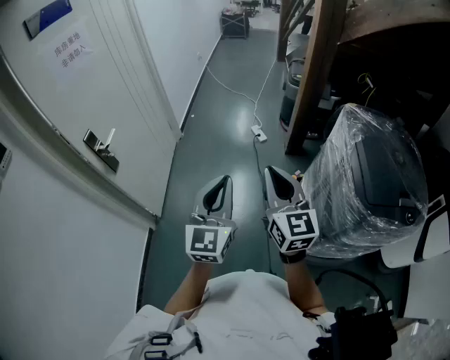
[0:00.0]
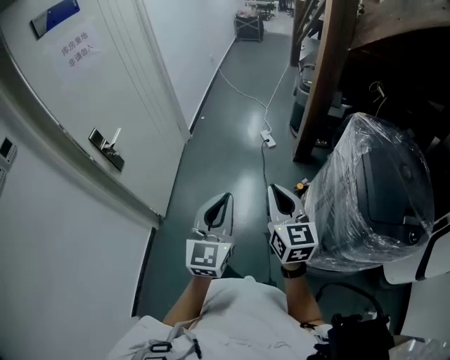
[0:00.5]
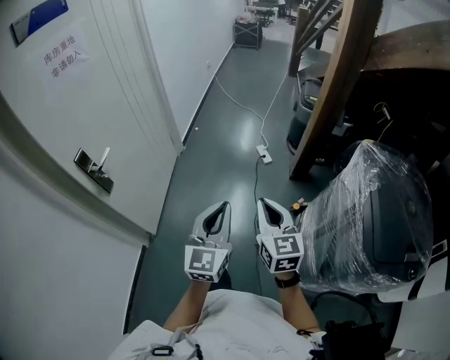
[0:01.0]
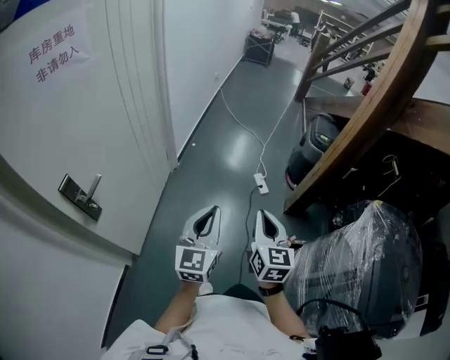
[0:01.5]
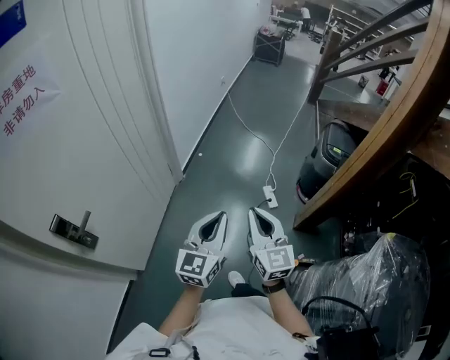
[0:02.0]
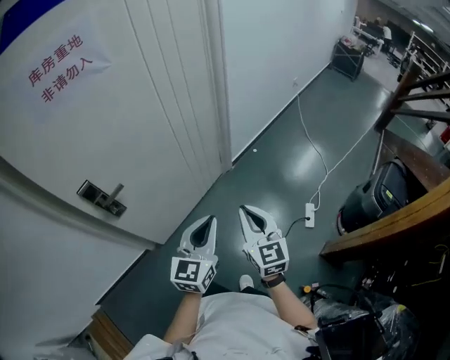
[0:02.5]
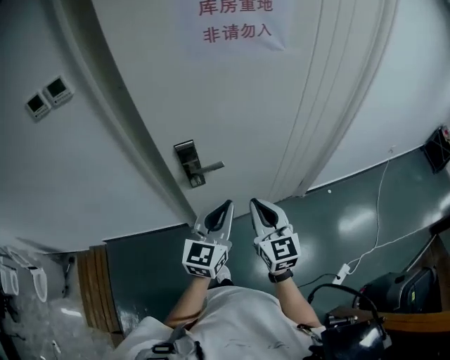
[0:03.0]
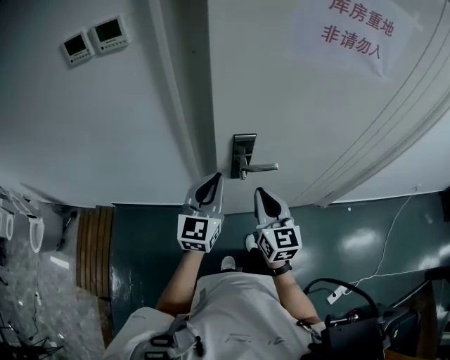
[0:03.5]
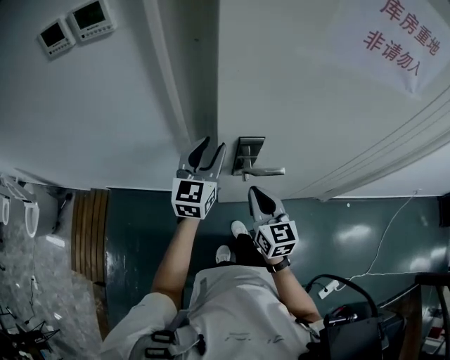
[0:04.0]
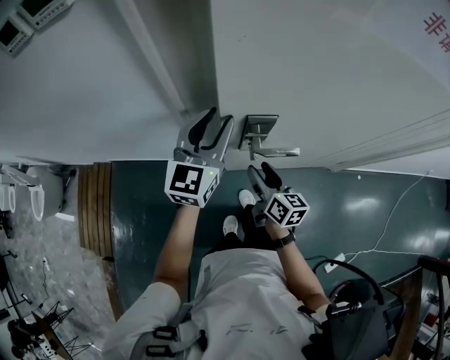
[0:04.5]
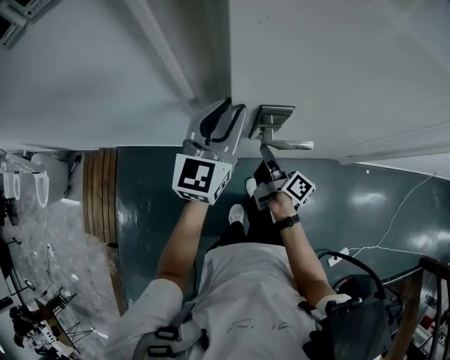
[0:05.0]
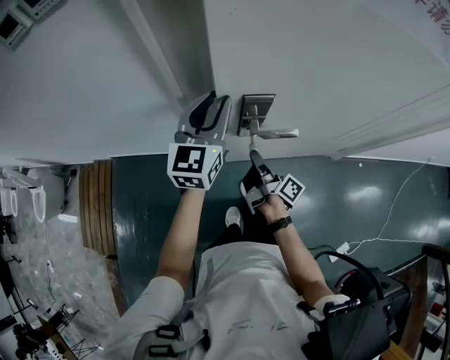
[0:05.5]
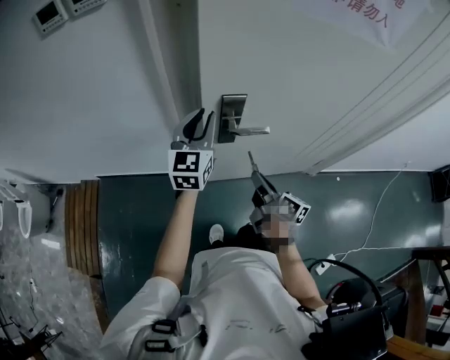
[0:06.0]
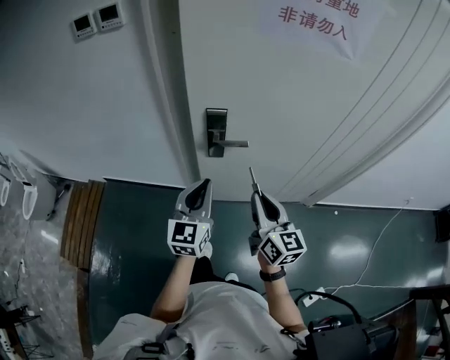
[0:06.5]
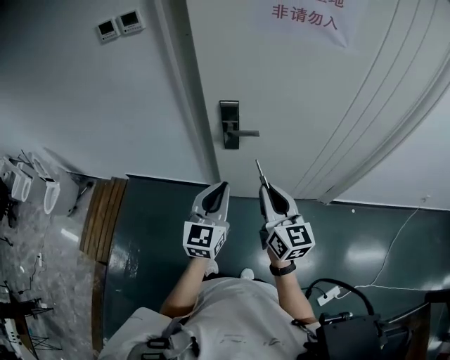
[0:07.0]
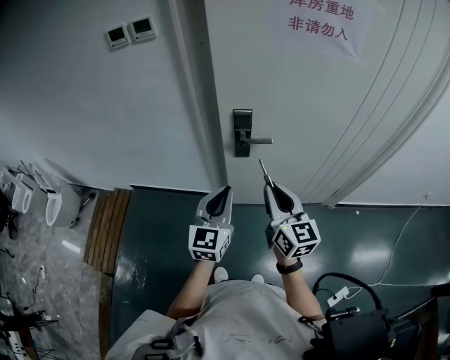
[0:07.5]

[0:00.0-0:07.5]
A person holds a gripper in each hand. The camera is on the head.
0:00.0 to 0:02.0: The pair of grippers is taken forward, some 50 cm.
0:02.0 to 0:04.0: The pair of grippers is taken approximately 60 cm. The left gripper swivels about 80 degrees, and opens its fingers. Meanwhile the right gripper changes its angle by approximately 70 degrees.
0:04.0 to 0:05.5: The right gripper travels downward by about 15 cm, rolls clockwise, seen from behind, by some 80 degrees, and opens, then closes once more.
0:05.5 to 0:07.5: The right gripper heads upward and backward, covering approximately 35 cm, and rolls counterclockwise, seen from behind, by about 80 degrees, while the left gripper goes roughly 30 cm backward, and closes up.

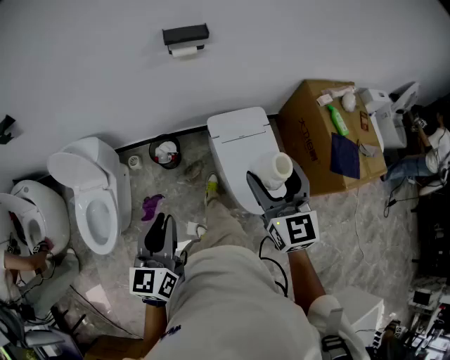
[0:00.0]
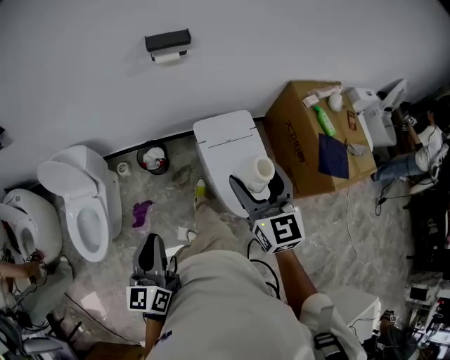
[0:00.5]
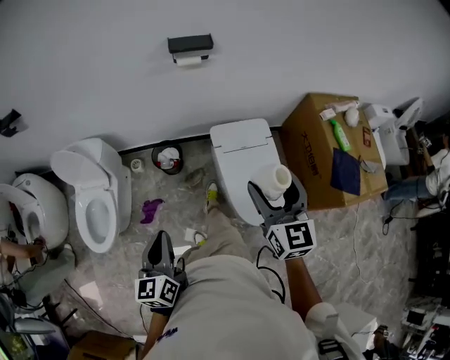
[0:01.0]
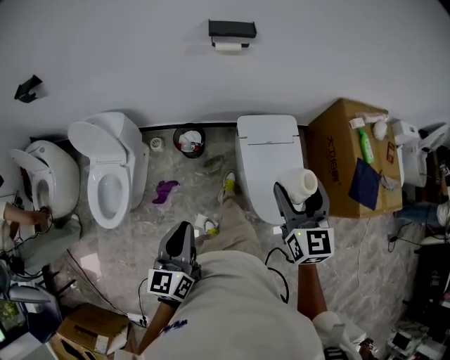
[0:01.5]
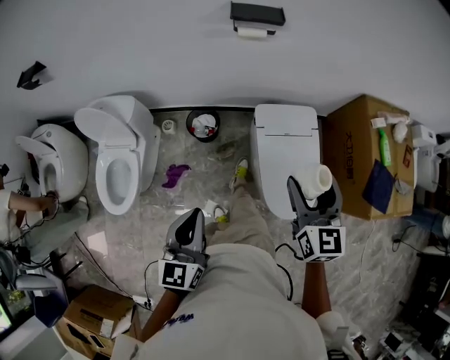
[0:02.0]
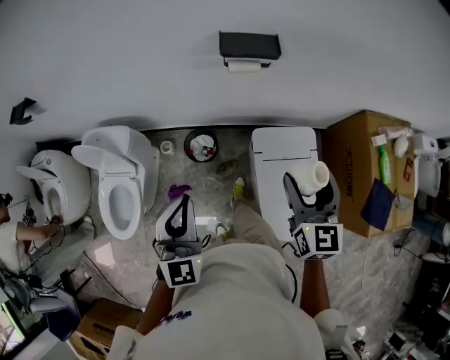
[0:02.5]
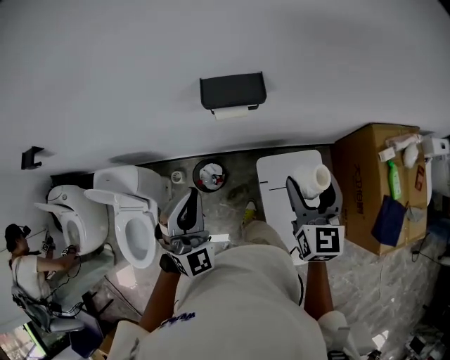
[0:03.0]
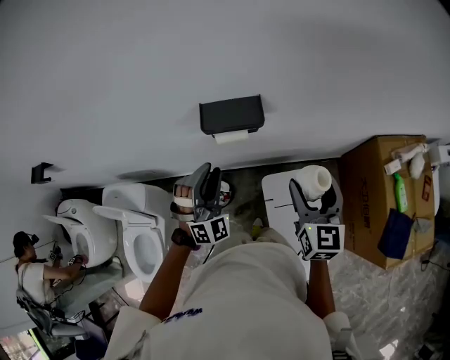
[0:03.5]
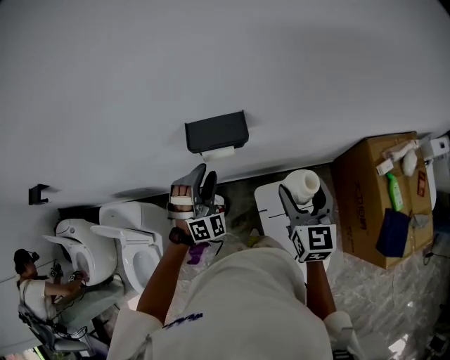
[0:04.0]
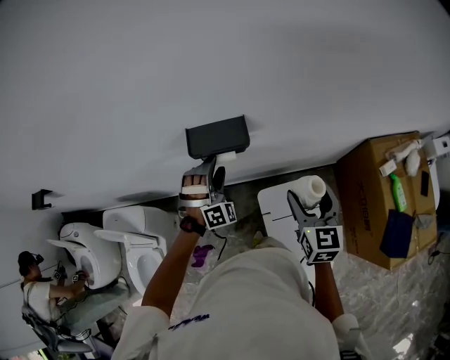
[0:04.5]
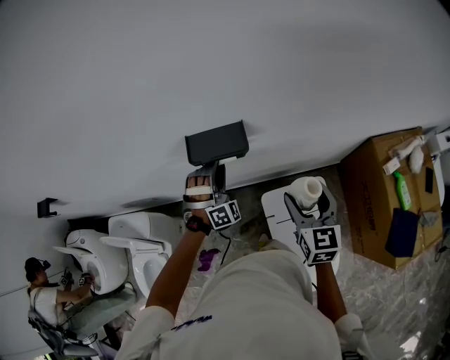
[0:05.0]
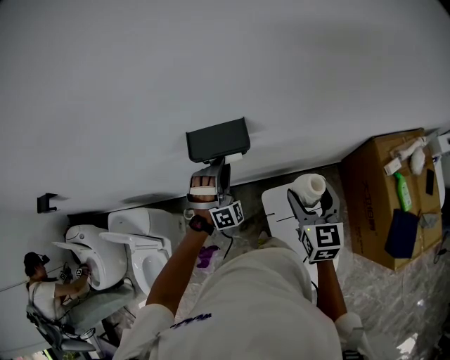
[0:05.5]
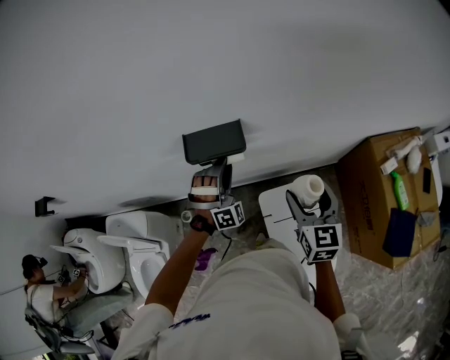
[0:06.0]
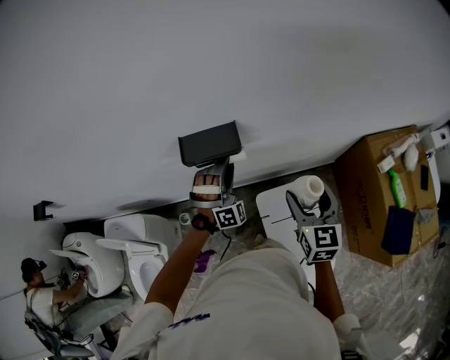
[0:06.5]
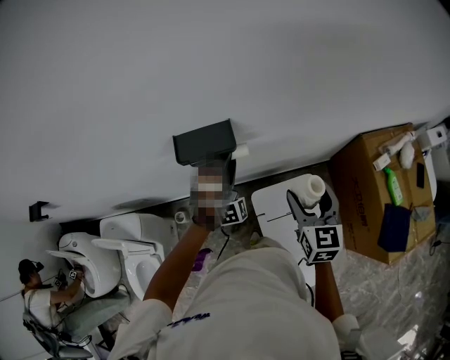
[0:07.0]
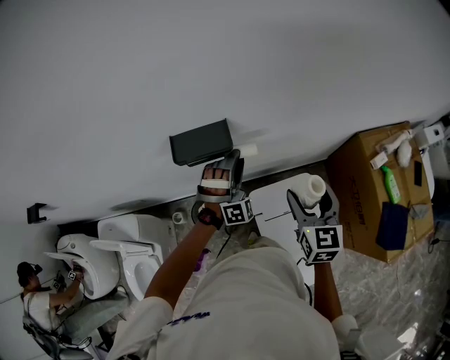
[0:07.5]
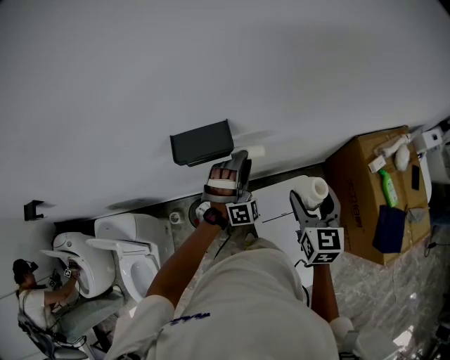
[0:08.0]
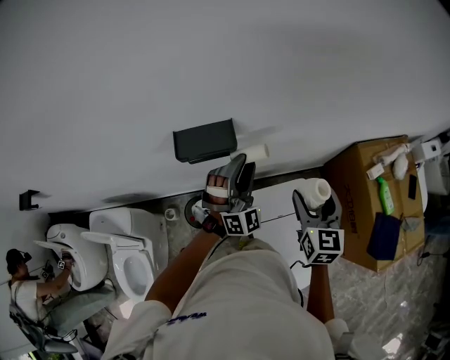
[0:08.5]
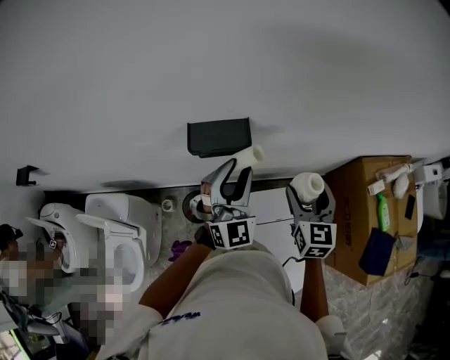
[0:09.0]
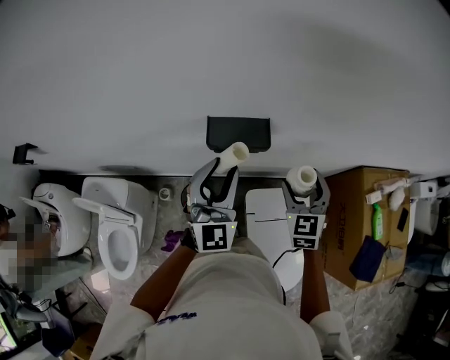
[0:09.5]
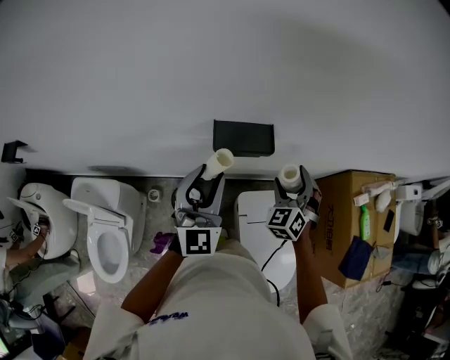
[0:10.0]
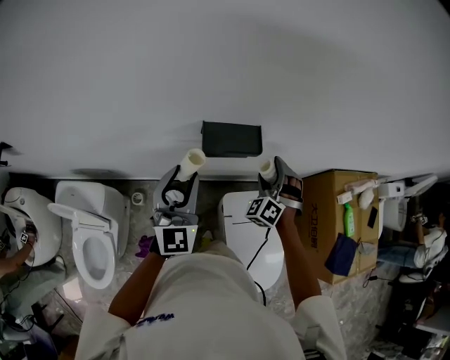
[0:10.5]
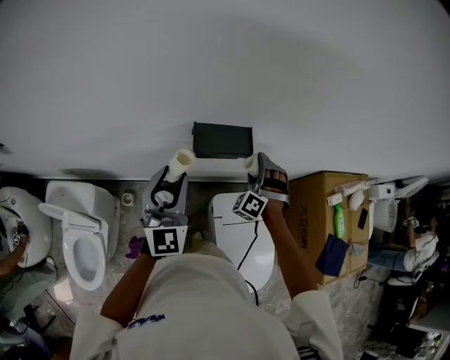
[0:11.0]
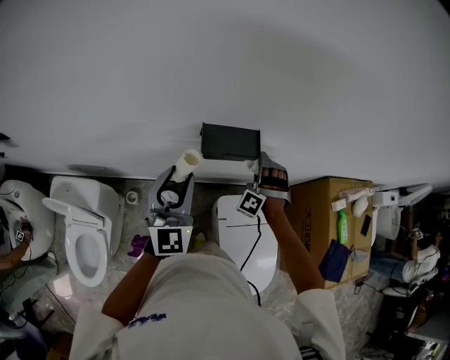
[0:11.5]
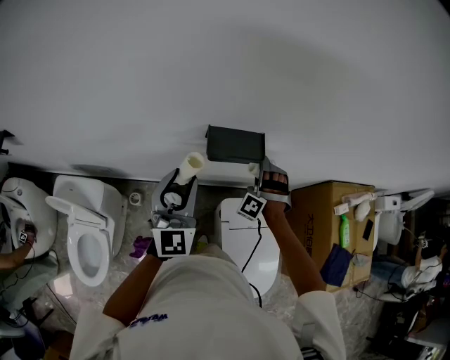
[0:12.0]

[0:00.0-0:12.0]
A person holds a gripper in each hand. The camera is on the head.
0:00.0 to 0:02.0: The right gripper is displaced forward and downward by some 10 cm.
0:02.0 to 0:04.0: The right gripper heads forward, covering approximately 35 cm. Meanwhile the left gripper shifts approximately 50 cm forward, rolls clockwise, seen from behind, by about 80 degrees, and opens up.
0:04.0 to 0:06.0: The left gripper goes approximately 5 cm to the right.
0:06.0 to 0:08.0: The left gripper shifts roughly 10 cm to the right.
0:08.0 to 0:10.0: The right gripper heads to the left and forward, covering about 15 cm, and rotates around the line of its fingers by some 50 degrees, counterclockwise from behind. The left gripper shifts approximately 25 cm to the left, upward and backward, and twists roughly 60 degrees counterclockwise, seen from behind.
0:10.0 to 0:12.0: The right gripper shifts roughly 10 cm downward and to the left, and twists roughly 40 degrees counterclockwise, seen from behind; the left gripper shifts by approximately 5 cm.

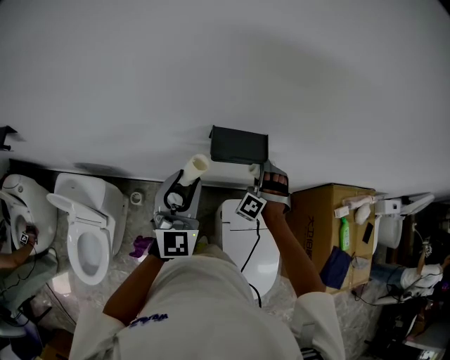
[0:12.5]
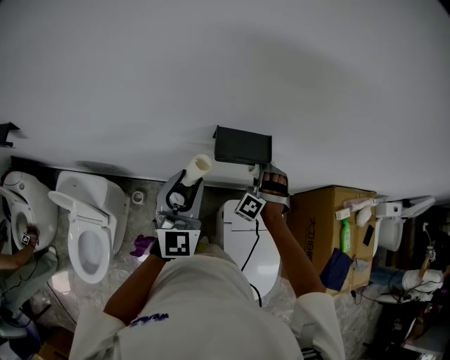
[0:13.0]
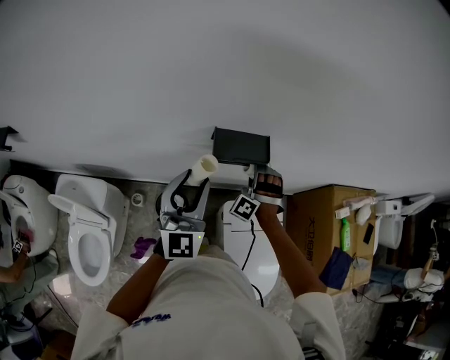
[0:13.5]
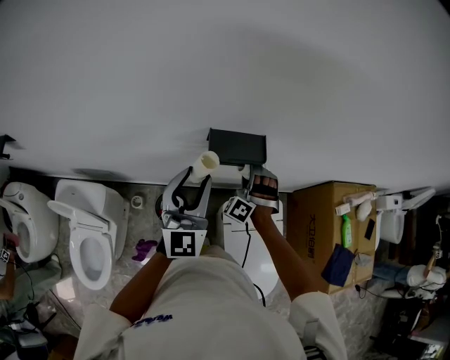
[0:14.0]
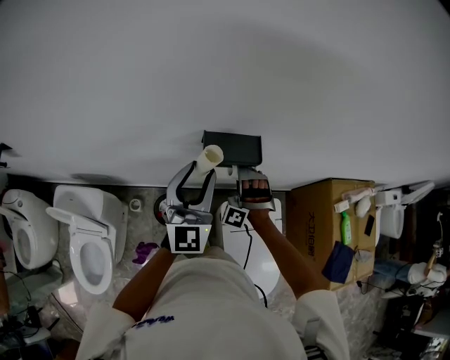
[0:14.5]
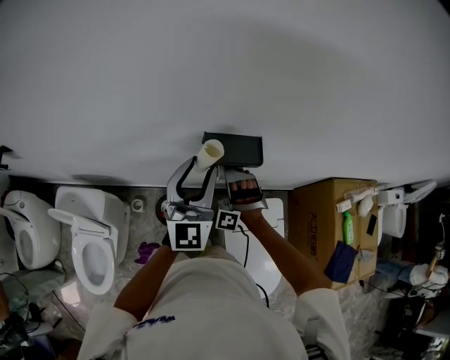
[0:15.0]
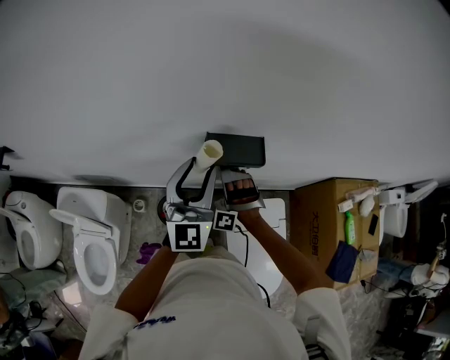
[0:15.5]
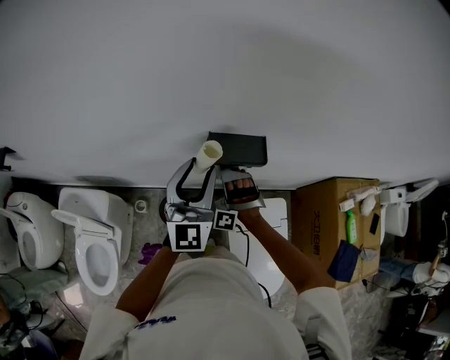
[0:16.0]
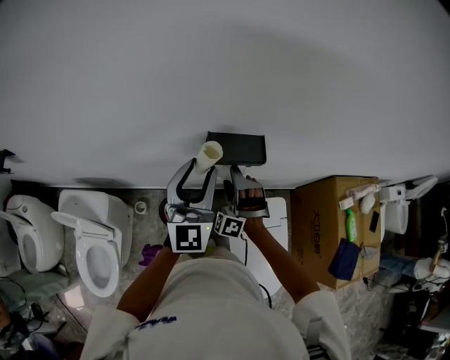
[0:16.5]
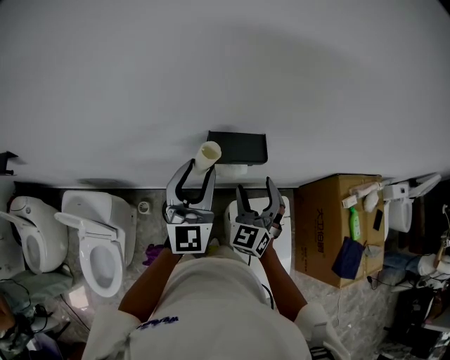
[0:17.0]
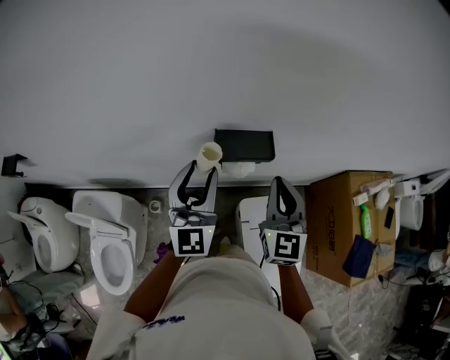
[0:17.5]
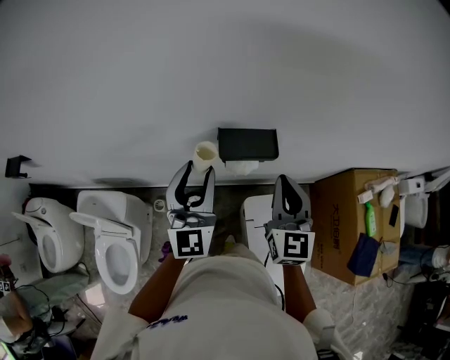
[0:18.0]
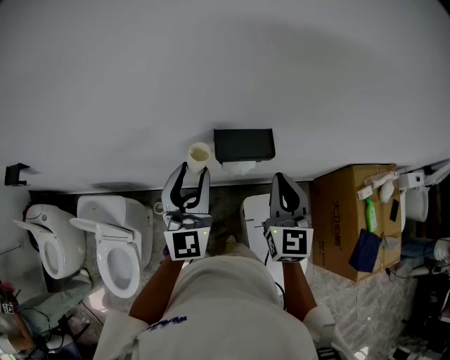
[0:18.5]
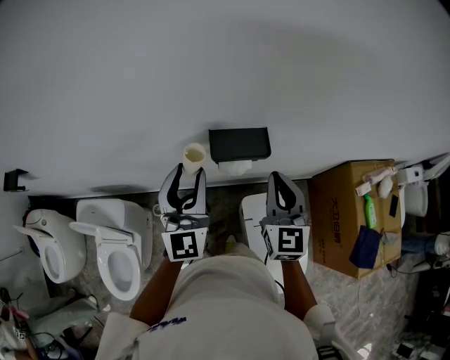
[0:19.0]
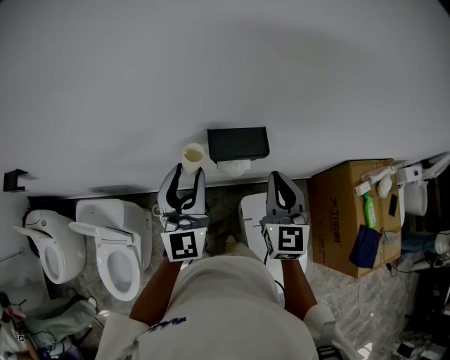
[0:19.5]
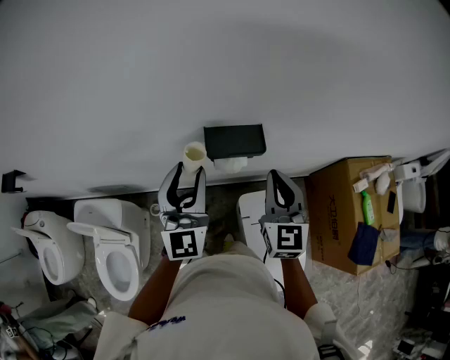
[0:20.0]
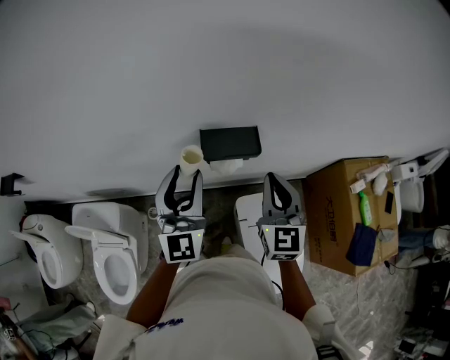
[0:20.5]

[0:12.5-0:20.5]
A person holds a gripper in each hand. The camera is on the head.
0:12.5 to 0:14.5: The left gripper changes place by about 5 cm. Meanwhile the right gripper moves to the left, some 5 cm.
0:14.5 to 0:16.5: The right gripper shifts by about 5 cm.
0:16.5 to 0:18.5: The right gripper travels upward and to the right by approximately 20 cm, rolls clockwise, seen from behind, by approximately 80 degrees, and closes.
0:18.5 to 0:20.5: The two grippers keep their place.
